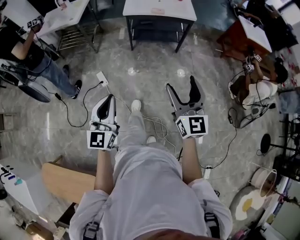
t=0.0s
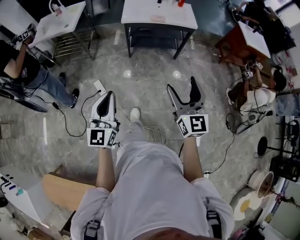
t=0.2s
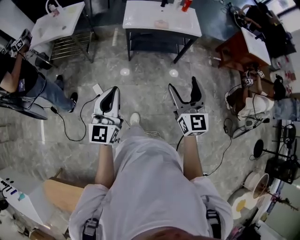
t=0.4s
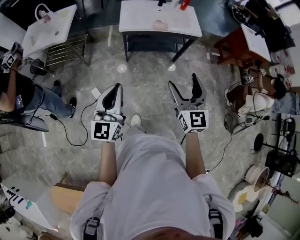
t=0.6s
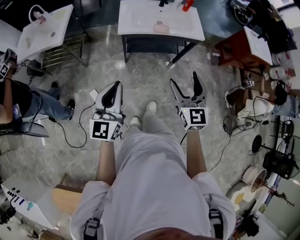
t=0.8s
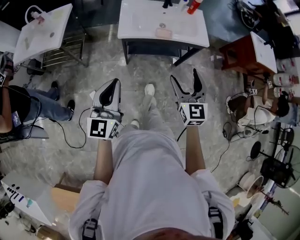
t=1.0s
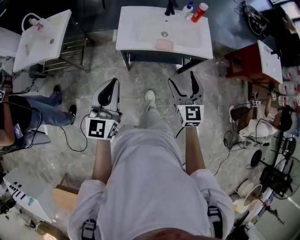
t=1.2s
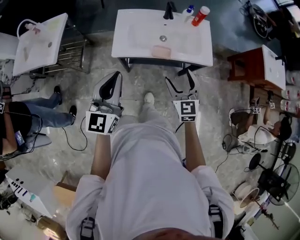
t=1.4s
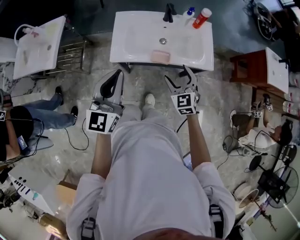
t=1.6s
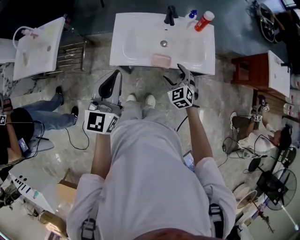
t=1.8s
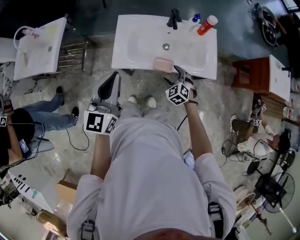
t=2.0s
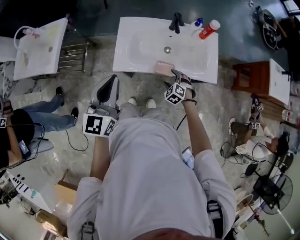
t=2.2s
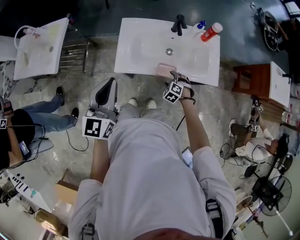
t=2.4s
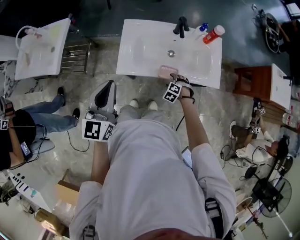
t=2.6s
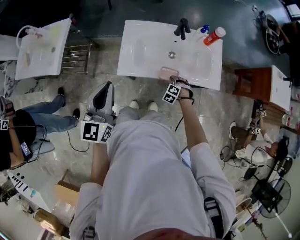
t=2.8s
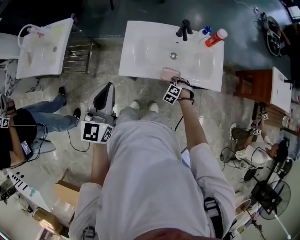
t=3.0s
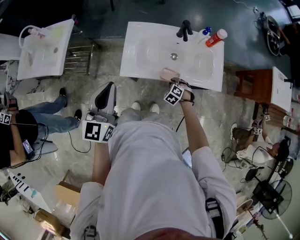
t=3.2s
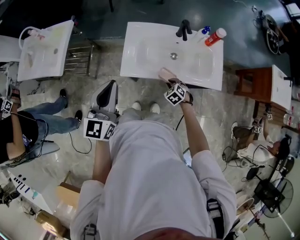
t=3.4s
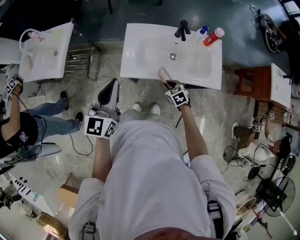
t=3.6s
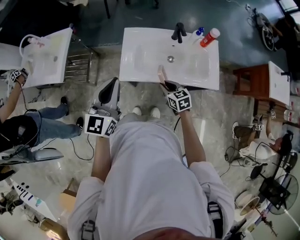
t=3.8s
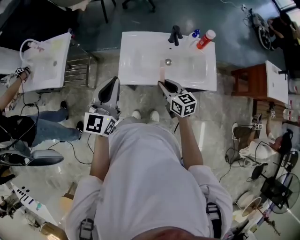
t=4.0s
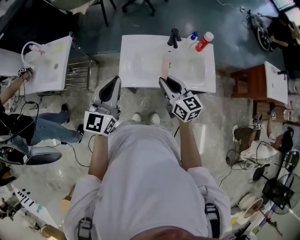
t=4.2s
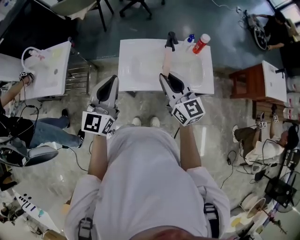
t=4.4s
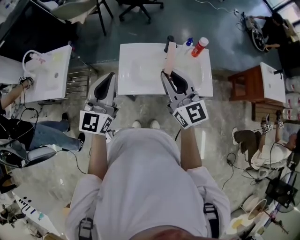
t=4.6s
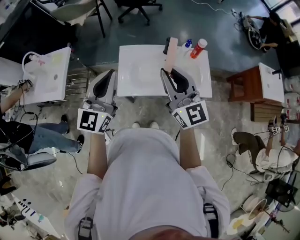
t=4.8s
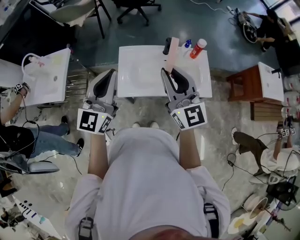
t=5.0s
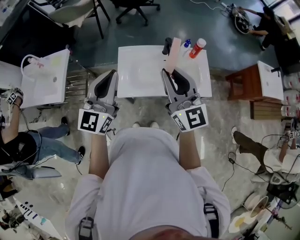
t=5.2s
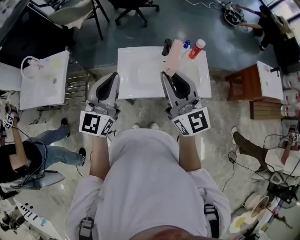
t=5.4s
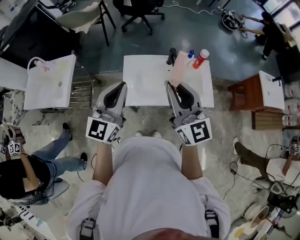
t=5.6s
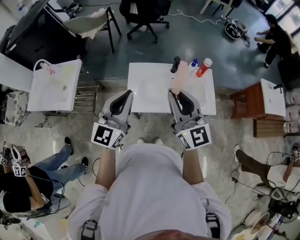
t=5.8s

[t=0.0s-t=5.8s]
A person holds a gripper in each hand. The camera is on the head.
t=0.0s to t=1.4s: The pair of grippers is taken forward, roughly 60 cm. The right gripper rotates roughly 20 degrees.
t=1.4s to t=2.8s: The left gripper goes about 15 cm forward and to the left. The right gripper shifts roughly 35 cm downward and forward, angles its fingers downward, by approximately 50 degrees, and closes.
t=2.8s to t=4.4s: The right gripper is displaced upward by some 40 cm, and points its fingers some 70 degrees further upward, while the left gripper heads upward, covering about 5 cm.
t=4.4s to t=5.8s: The right gripper goes about 10 cm upward. Meanwhile the left gripper travels upward by approximately 5 cm.

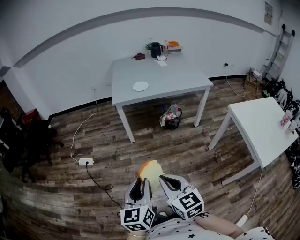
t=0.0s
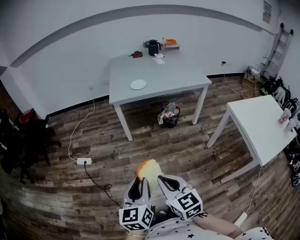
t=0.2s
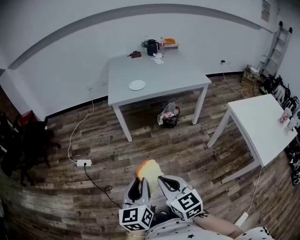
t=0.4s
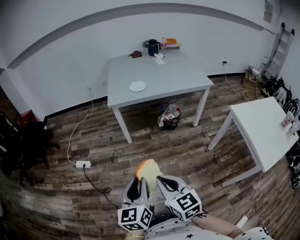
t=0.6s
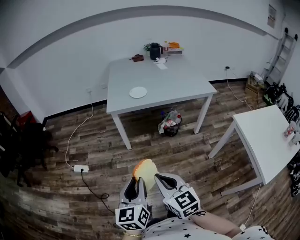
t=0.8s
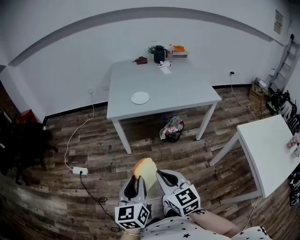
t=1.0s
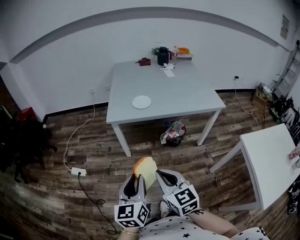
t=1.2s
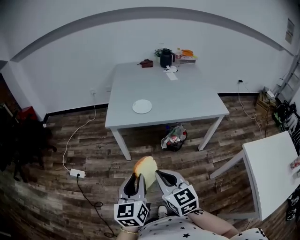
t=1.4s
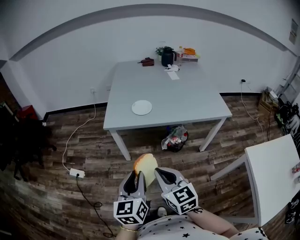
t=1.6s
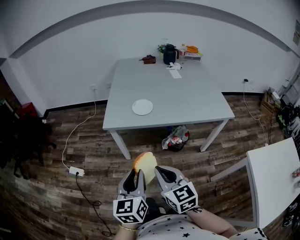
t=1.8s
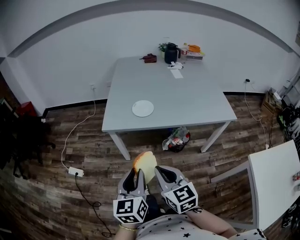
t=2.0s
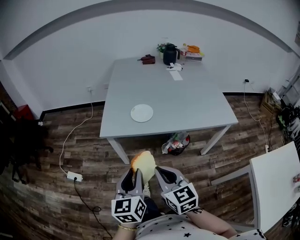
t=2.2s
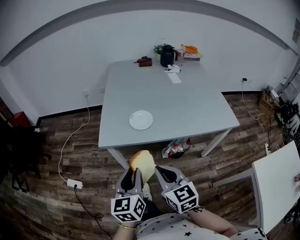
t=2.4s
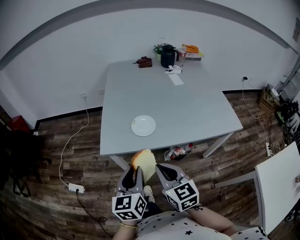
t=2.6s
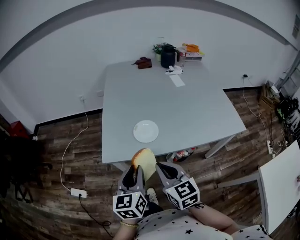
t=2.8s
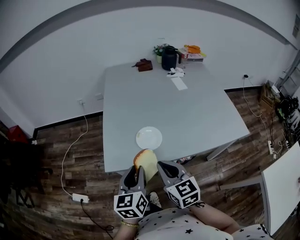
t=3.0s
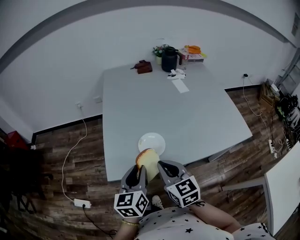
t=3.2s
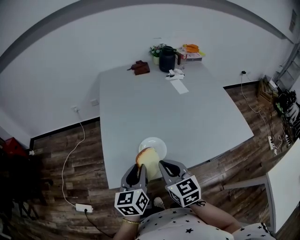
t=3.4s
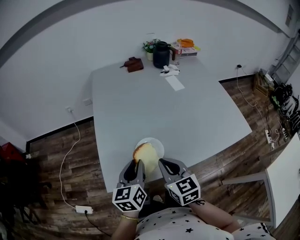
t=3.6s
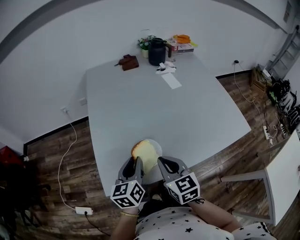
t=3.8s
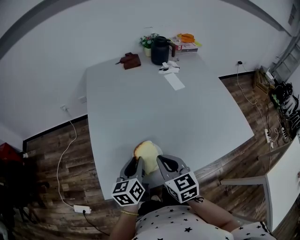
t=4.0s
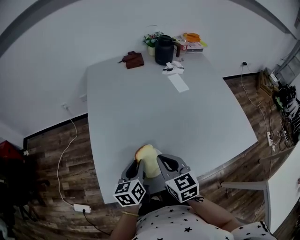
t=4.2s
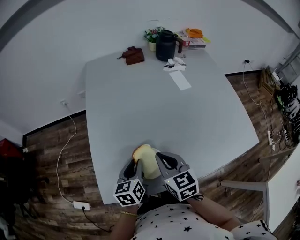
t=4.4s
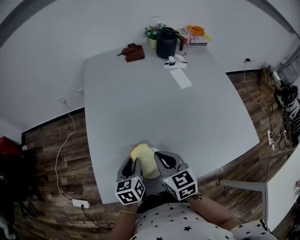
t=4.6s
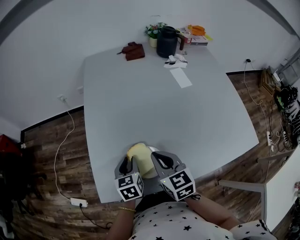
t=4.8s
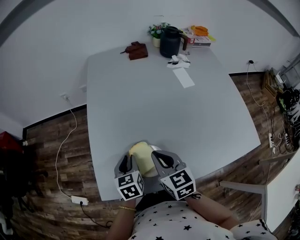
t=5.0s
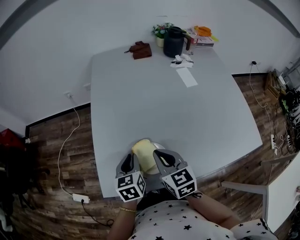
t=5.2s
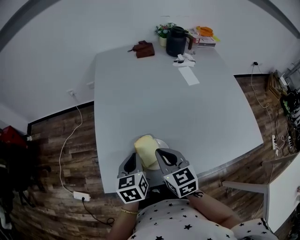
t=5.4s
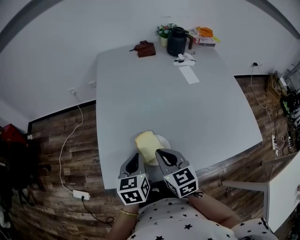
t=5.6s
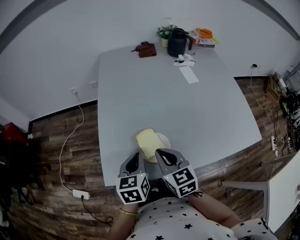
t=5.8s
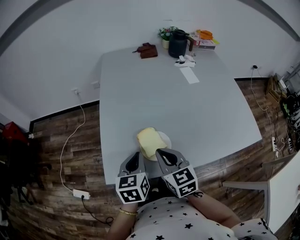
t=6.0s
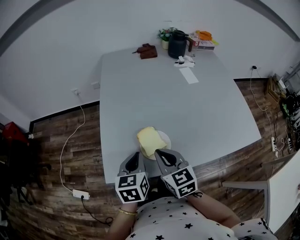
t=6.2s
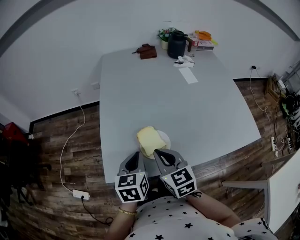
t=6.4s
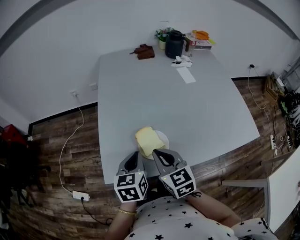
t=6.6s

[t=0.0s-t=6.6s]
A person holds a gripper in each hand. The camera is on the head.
t=0.0s to t=1.6s: The grippers both shift forward by approximately 35 cm.
t=1.6s to t=3.2s: The grippers both shift forward by roughly 40 cm.
t=3.2s to t=5.0s: The right gripper moves forward, about 15 cm. The left gripper goes some 20 cm forward and downward, and rotates roughly 20 degrees.
t=5.0s to t=6.6s: The left gripper shifts some 10 cm backward and upward, and closes, while the right gripper is displaced backward by approximately 5 cm.

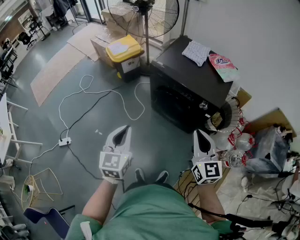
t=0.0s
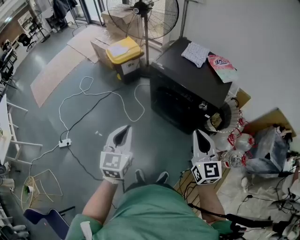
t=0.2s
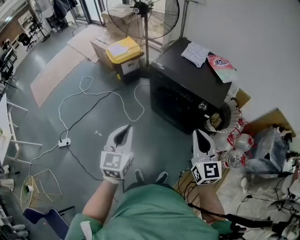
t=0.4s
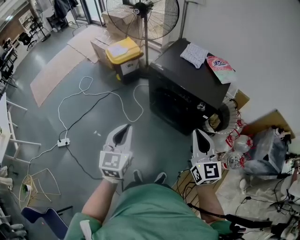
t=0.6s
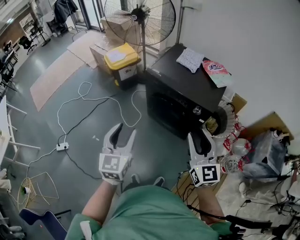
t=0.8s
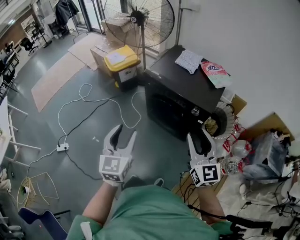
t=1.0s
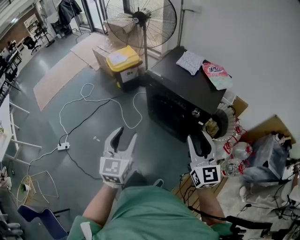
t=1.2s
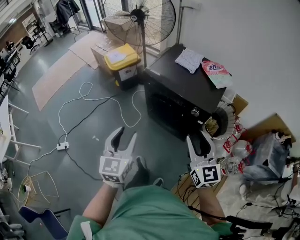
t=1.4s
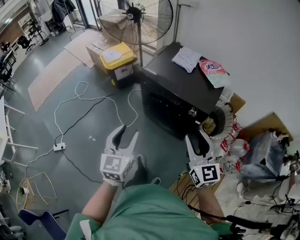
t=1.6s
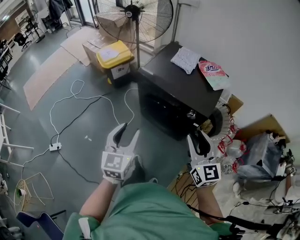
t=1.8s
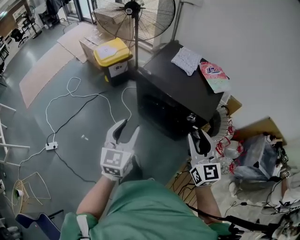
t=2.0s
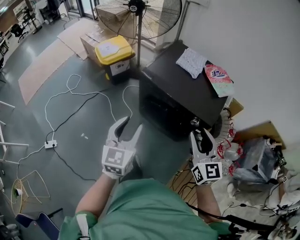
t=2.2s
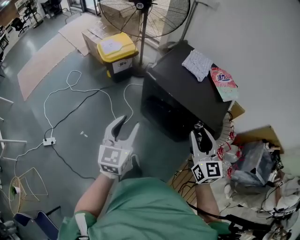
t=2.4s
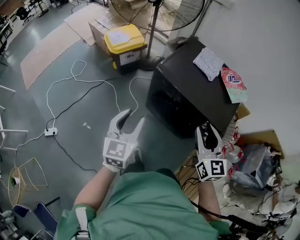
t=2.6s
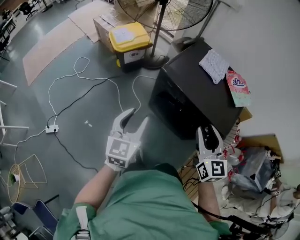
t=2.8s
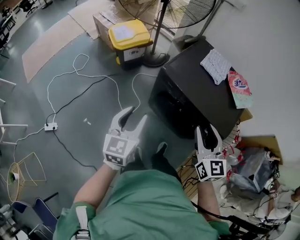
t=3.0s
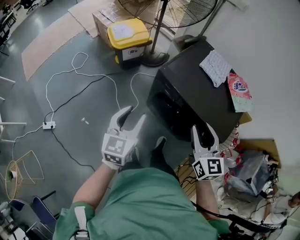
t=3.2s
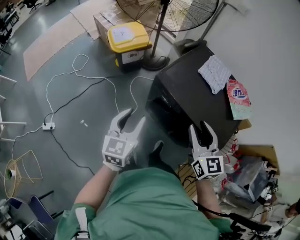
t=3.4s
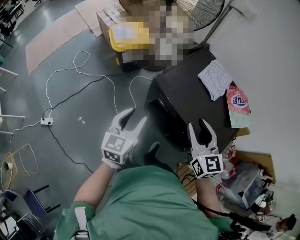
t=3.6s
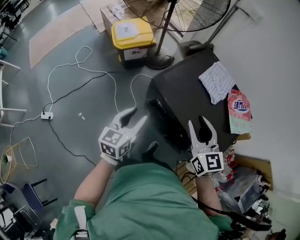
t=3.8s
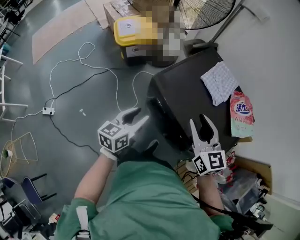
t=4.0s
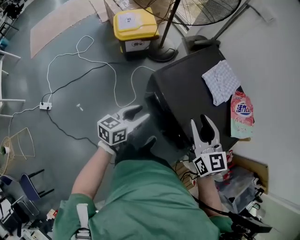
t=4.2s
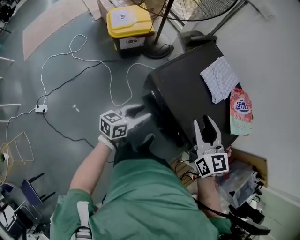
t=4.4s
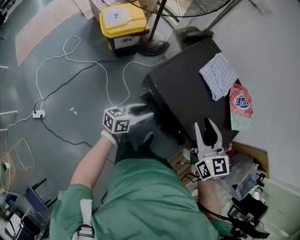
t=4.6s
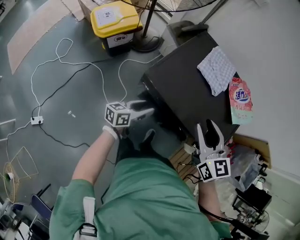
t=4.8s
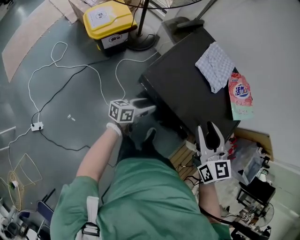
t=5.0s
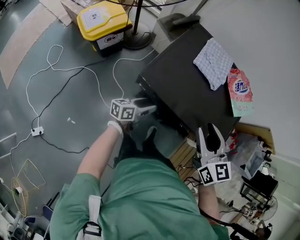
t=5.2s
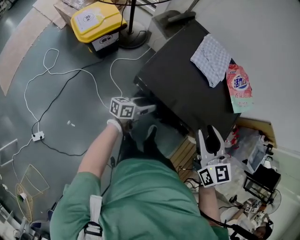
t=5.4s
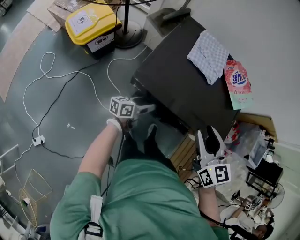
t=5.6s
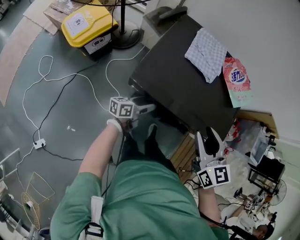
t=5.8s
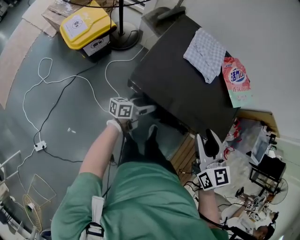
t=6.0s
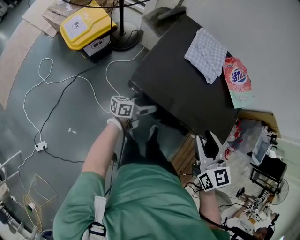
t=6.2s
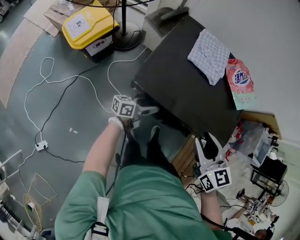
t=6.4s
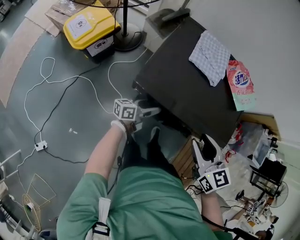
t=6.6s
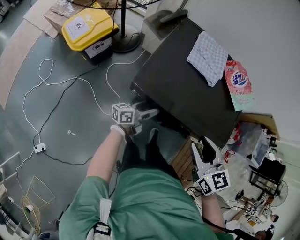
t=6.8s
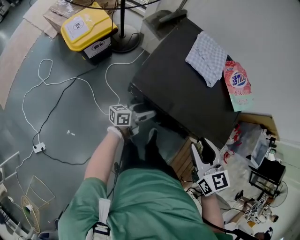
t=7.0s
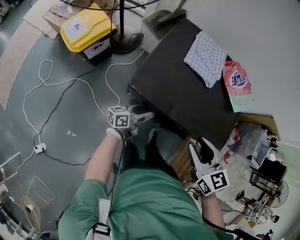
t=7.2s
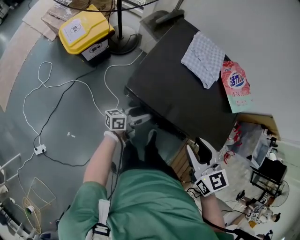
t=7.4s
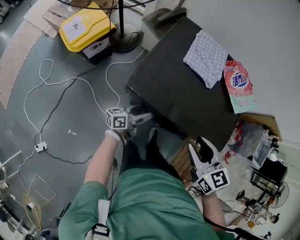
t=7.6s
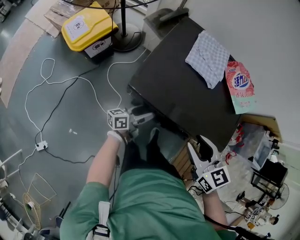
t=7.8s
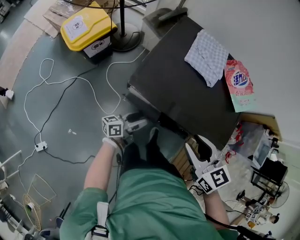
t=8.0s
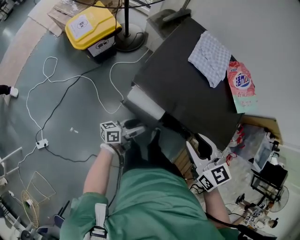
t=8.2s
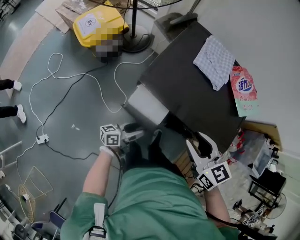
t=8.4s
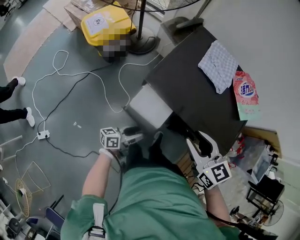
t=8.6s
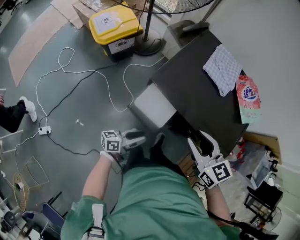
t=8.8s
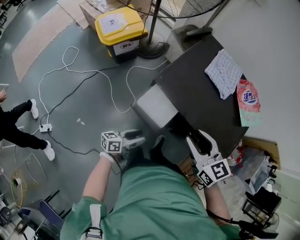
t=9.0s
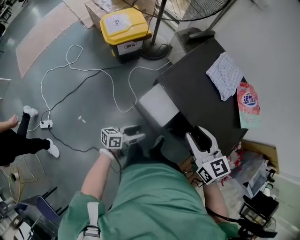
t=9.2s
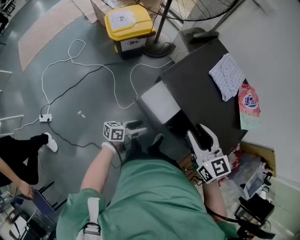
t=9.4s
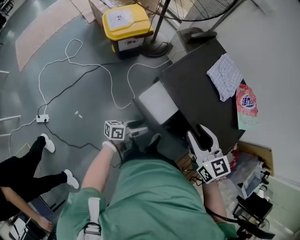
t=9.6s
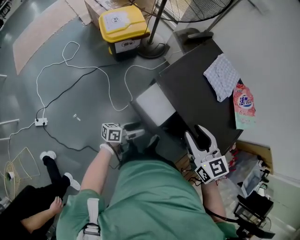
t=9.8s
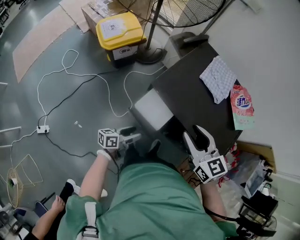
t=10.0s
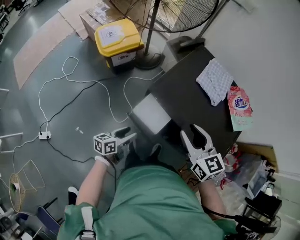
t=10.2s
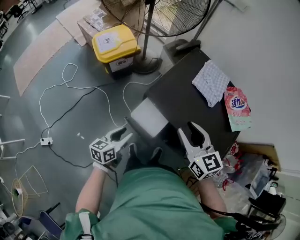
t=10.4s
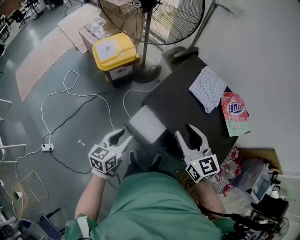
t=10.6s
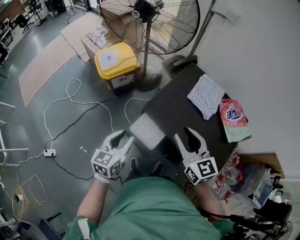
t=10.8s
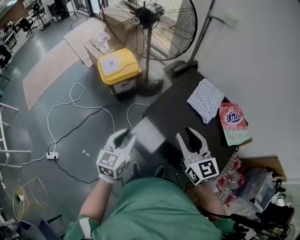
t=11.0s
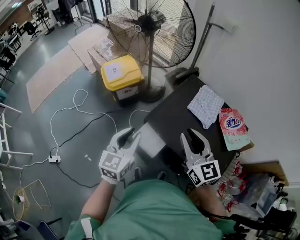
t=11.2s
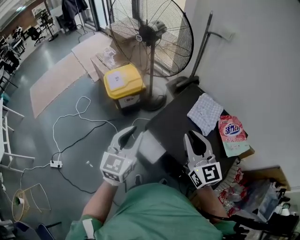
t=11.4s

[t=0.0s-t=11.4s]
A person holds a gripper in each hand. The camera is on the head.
t=0.0s to t=1.4s: Both grippers move to the right, about 5 cm. The left gripper opens. The right gripper opens.
t=1.4s to t=2.8s: Both grippers travel together forward and to the left, approximately 25 cm.
t=2.8s to t=4.2s: The left gripper is displaced forward, downward and to the right by roughly 25 cm, and changes its angle by approximately 30 degrees. Meanwhile the right gripper heads forward, covering some 20 cm, and turns by roughly 20 degrees.
t=4.2s to t=5.6s: The left gripper travels downward by approximately 15 cm, and swivels roughly 40 degrees, while the right gripper turns by about 30 degrees.
t=5.6s to t=7.2s: The grippers stay close to where they were, moving slightly.
t=7.2s to t=8.6s: The left gripper travels backward by approximately 15 cm.
t=8.6s to t=10.0s: The right gripper shifts by roughly 5 cm.
t=10.0s to t=11.4s: The right gripper is displaced upward and forward by some 15 cm, swivels about 20 degrees, and closes, while the left gripper is displaced upward by roughly 35 cm, twists approximately 50 degrees clockwise, seen from behind, and closes its fingers.
